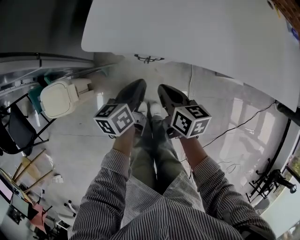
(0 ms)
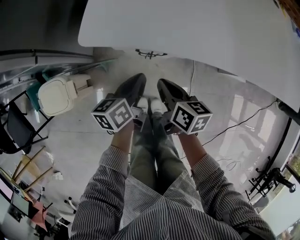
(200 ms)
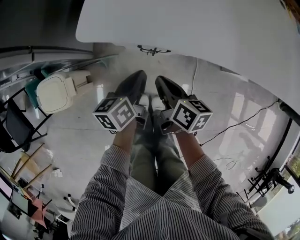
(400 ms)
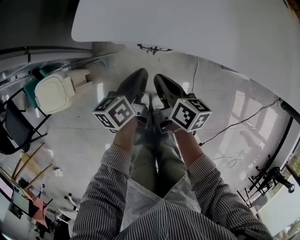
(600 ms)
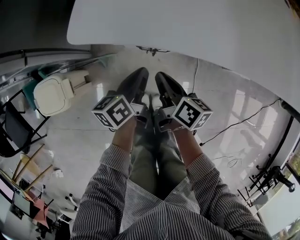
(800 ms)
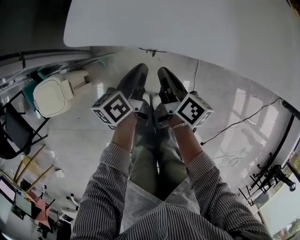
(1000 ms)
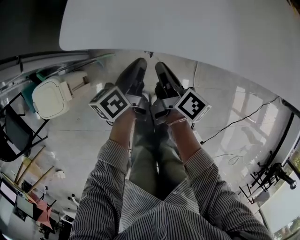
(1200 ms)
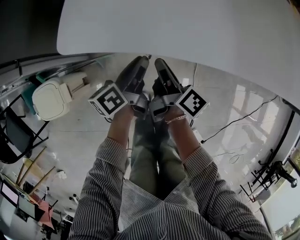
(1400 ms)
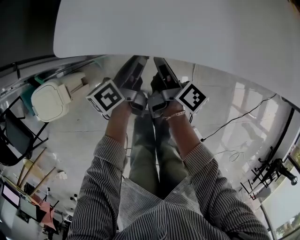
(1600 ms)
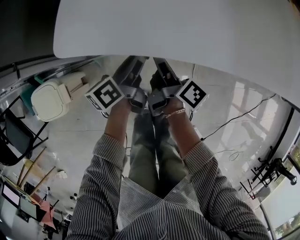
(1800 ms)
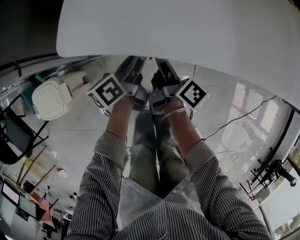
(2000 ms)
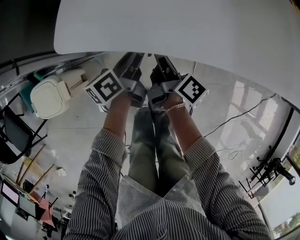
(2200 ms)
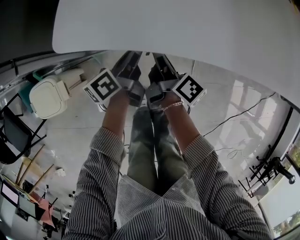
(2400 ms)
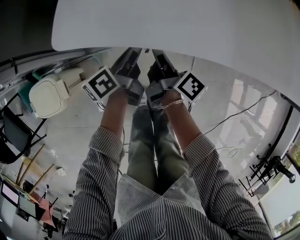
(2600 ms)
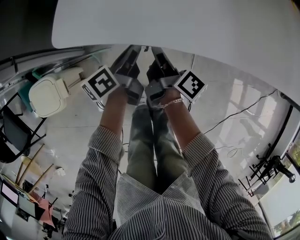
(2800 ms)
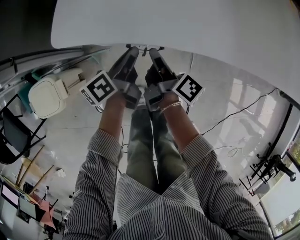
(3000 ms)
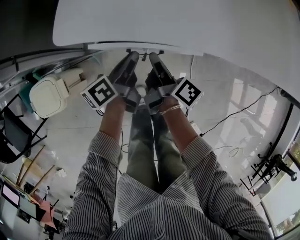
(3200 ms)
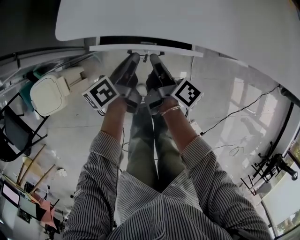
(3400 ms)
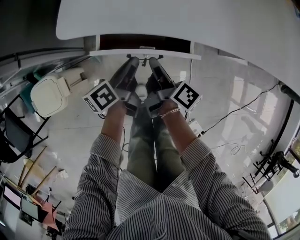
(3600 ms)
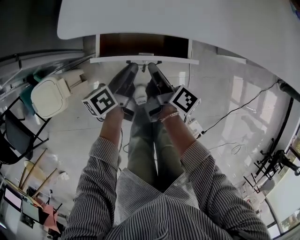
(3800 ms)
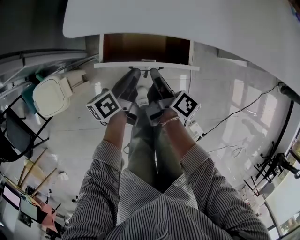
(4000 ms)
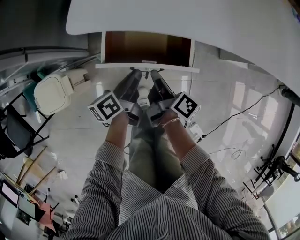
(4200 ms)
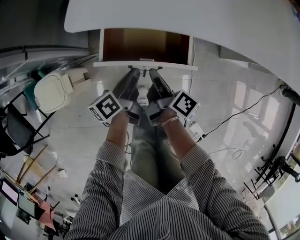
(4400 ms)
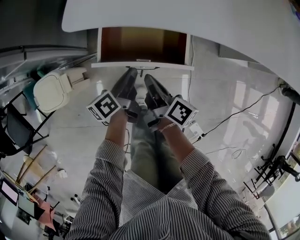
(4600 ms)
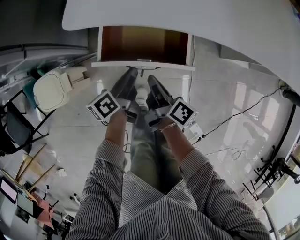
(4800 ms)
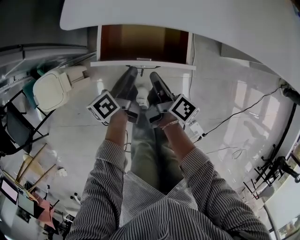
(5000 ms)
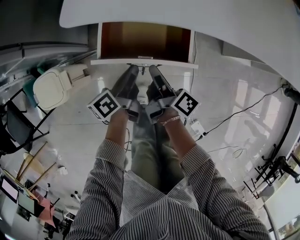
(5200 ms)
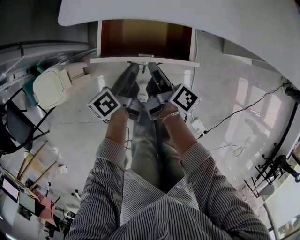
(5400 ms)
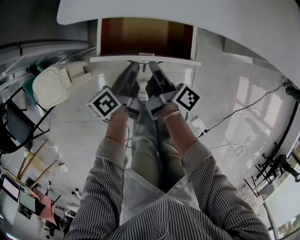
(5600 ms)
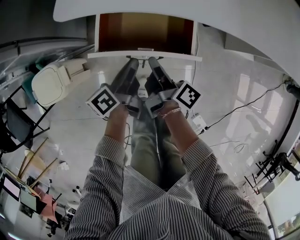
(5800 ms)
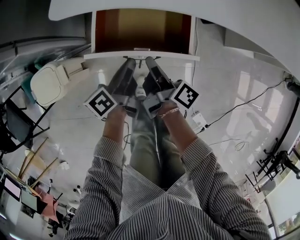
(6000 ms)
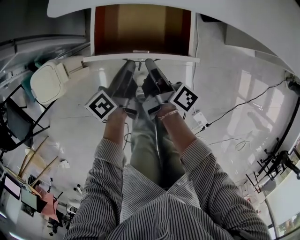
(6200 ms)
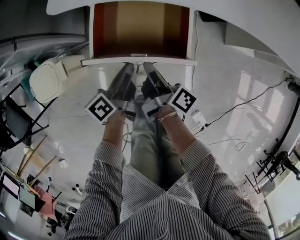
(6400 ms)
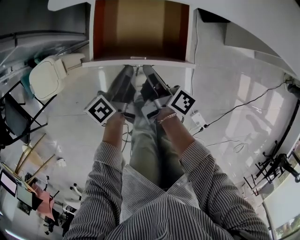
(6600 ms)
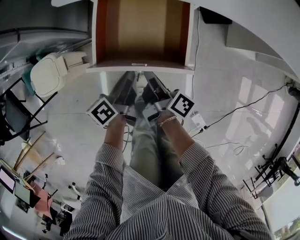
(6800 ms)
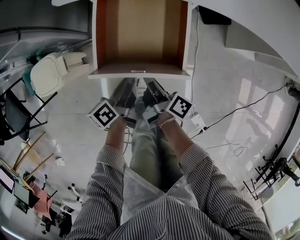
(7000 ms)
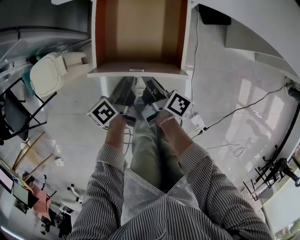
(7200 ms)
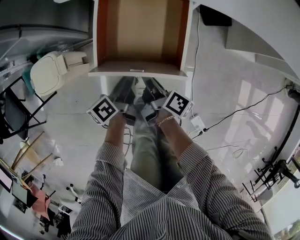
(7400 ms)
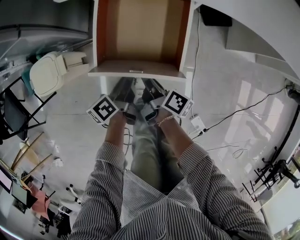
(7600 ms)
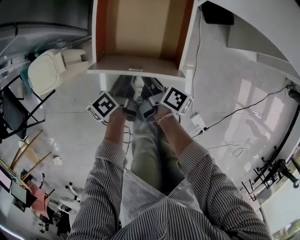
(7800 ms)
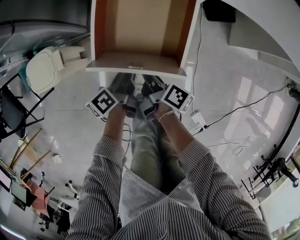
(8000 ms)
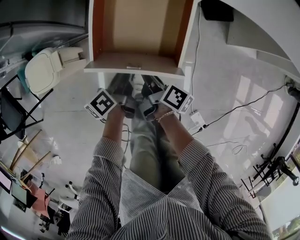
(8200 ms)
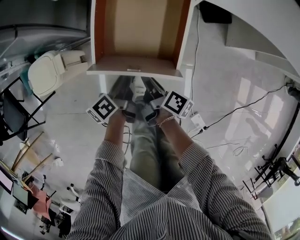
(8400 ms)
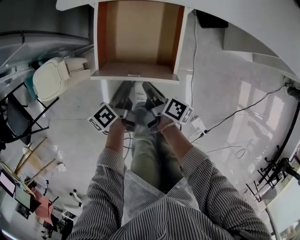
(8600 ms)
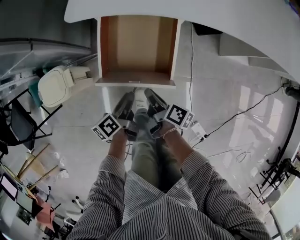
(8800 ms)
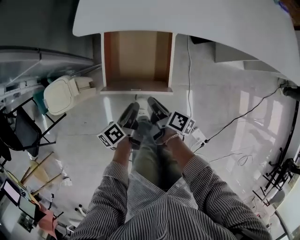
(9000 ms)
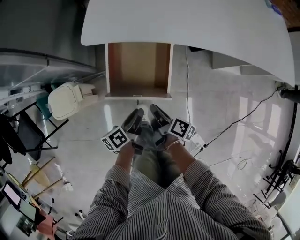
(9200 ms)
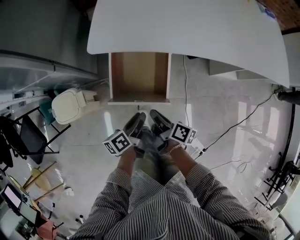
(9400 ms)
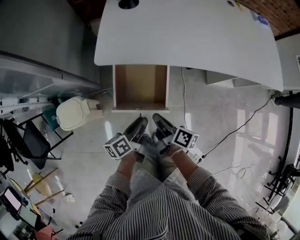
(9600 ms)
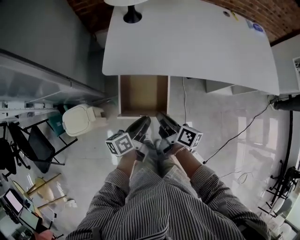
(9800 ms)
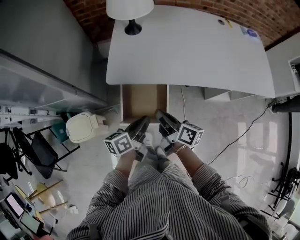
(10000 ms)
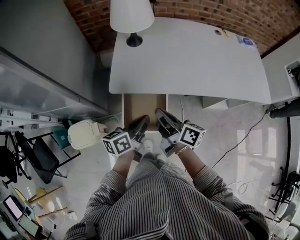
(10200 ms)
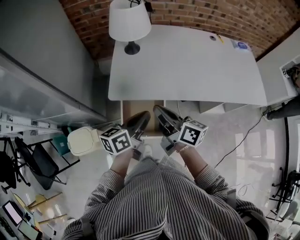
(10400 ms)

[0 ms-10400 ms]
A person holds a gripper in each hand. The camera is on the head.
0 ms to 1400 ms: The two grippers go approximately 10 cm forward and downward. The right gripper rotates roughly 40 degrees. The left gripper opens up.
1400 ms to 3000 ms: There are only small adjustments of the grippers.
3000 ms to 4400 ms: The two grippers go approximately 10 cm backward.
4400 ms to 6000 ms: There are only small adjustments of the grippers.
6000 ms to 7400 ms: Both grippers move backward, roughly 10 cm.
7400 ms to 9000 ms: The two grippers go about 5 cm upward. The left gripper opens up.
9000 ms to 10400 ms: The grippers both shift upward by approximately 40 cm. The right gripper turns by approximately 40 degrees; the left gripper swivels approximately 40 degrees, and closes.

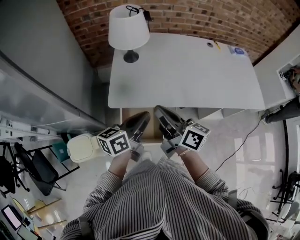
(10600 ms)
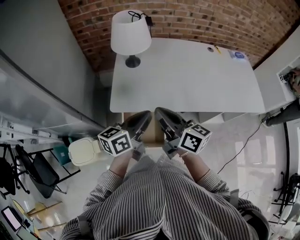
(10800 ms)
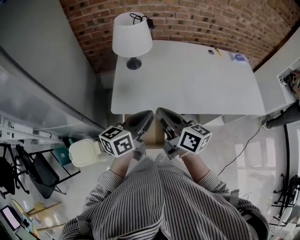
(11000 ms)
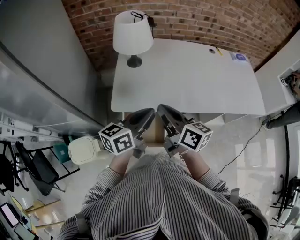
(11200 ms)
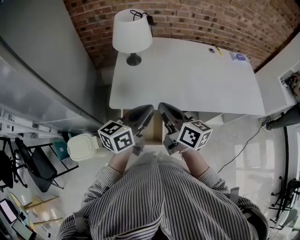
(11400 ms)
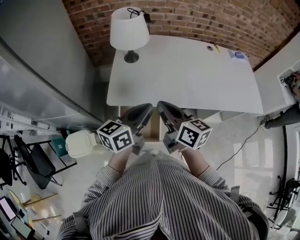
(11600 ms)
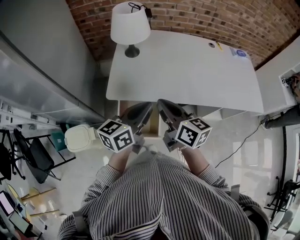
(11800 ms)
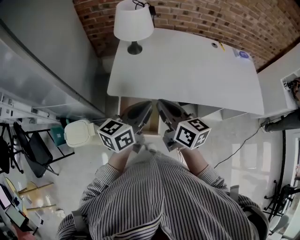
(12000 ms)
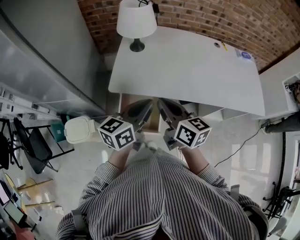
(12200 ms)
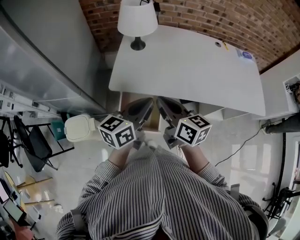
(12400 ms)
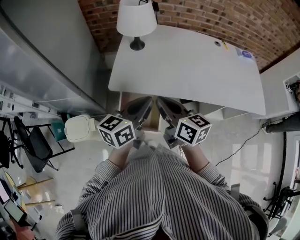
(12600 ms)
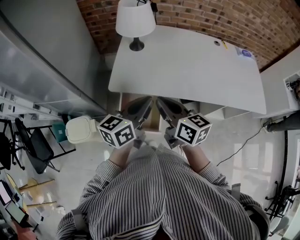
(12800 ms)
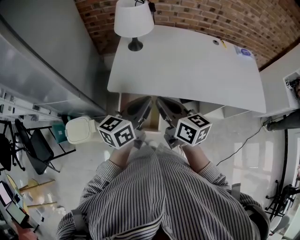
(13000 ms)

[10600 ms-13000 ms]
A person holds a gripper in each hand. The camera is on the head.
10600 ms to 11800 ms: The left gripper shifts approximately 5 cm upward.
11800 ms to 13000 ms: The grippers make only small movements.

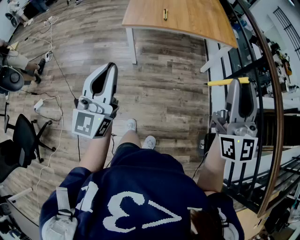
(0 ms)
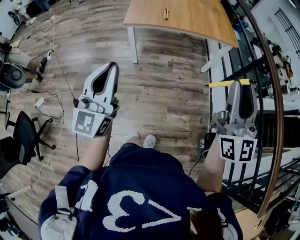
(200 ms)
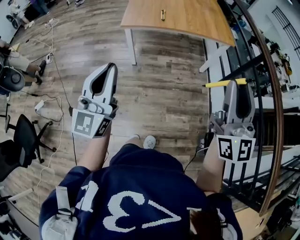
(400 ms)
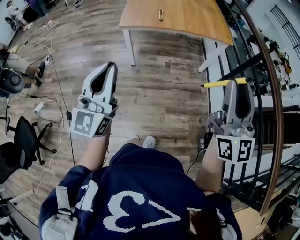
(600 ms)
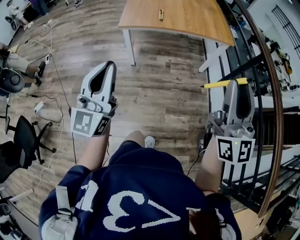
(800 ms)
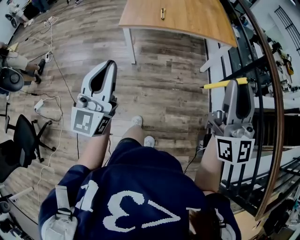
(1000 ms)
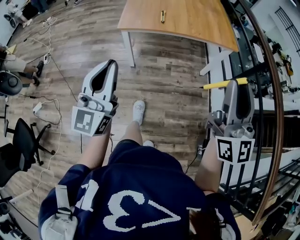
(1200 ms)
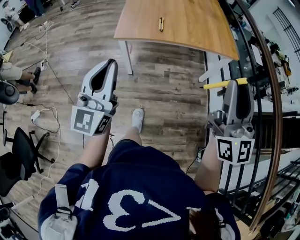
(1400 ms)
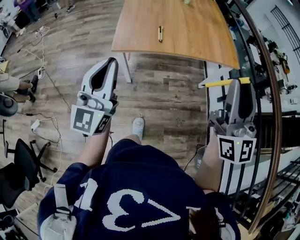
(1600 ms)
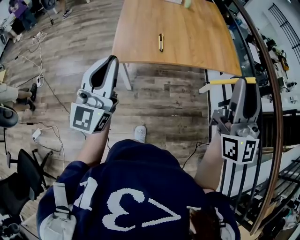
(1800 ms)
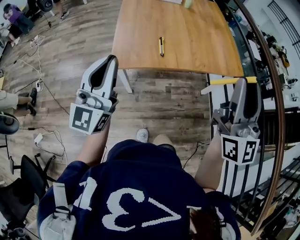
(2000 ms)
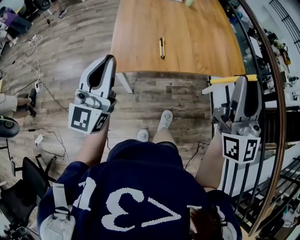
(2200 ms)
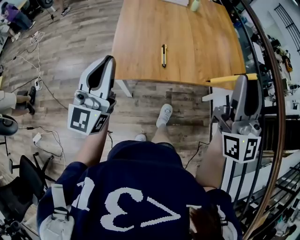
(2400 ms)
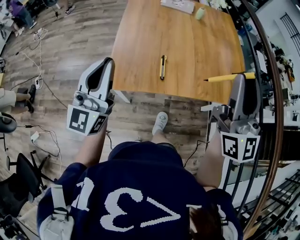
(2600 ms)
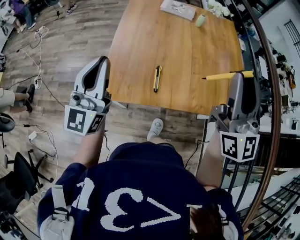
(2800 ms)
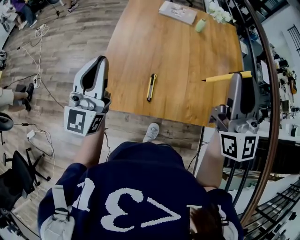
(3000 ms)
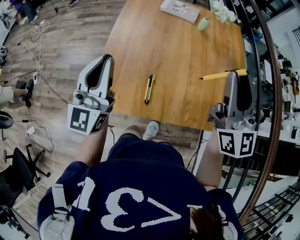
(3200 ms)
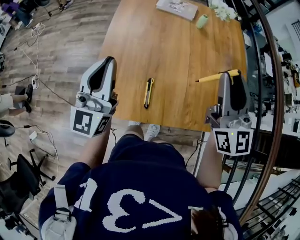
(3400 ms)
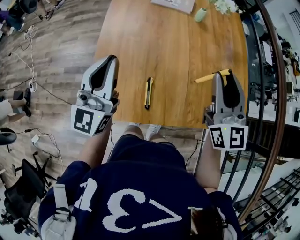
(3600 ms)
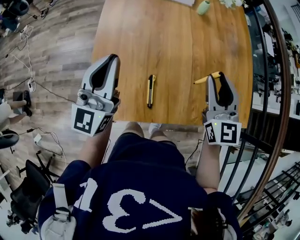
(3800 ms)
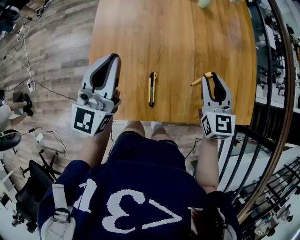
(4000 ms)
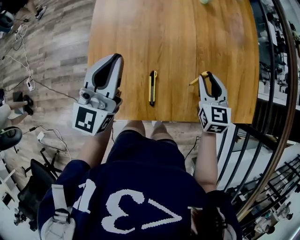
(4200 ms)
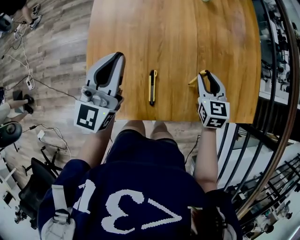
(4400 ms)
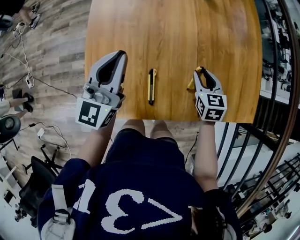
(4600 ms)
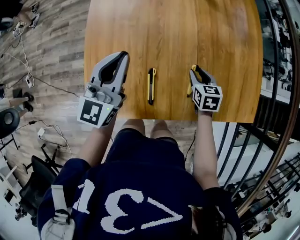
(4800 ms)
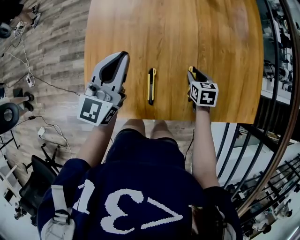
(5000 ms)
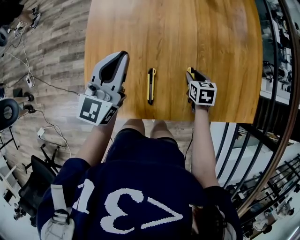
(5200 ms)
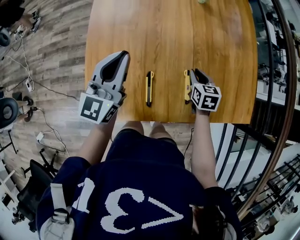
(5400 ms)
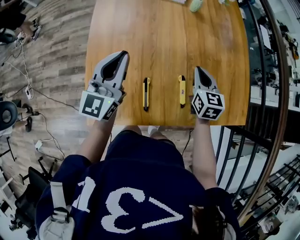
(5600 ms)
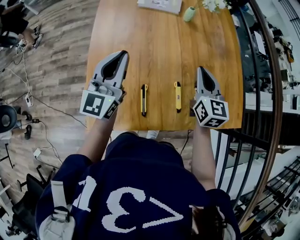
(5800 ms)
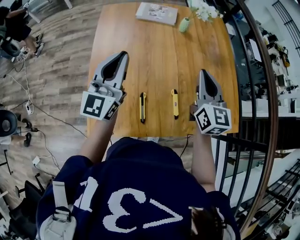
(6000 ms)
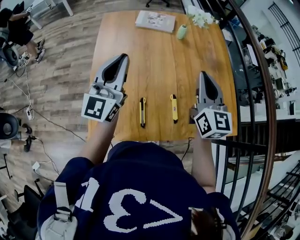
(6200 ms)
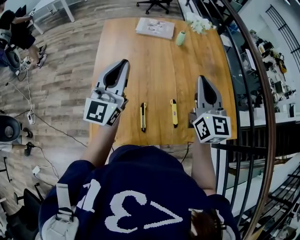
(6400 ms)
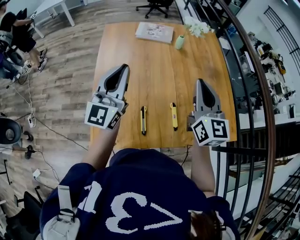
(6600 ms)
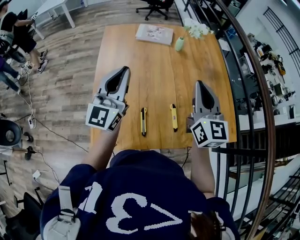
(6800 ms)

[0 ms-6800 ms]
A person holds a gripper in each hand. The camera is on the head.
0 ms to 1400 ms: Both grippers move forward, some 15 cm.
1400 ms to 2800 ms: The pair of grippers is taken forward, about 50 cm.
2800 ms to 4000 ms: The left gripper moves forward and downward, about 20 cm, while the right gripper goes some 35 cm downward and forward, and tilts its fingers roughly 40 degrees downward.
4000 ms to 5400 ms: The left gripper heads downward, covering roughly 5 cm; the right gripper shifts some 15 cm downward, and changes its angle by some 30 degrees.
5400 ms to 6800 ms: The right gripper shifts approximately 35 cm upward, and points its fingers some 50 degrees further upward; the left gripper goes approximately 15 cm upward.

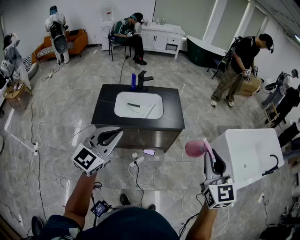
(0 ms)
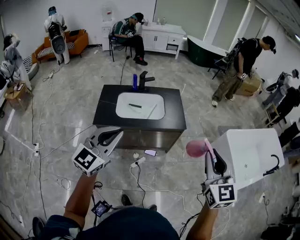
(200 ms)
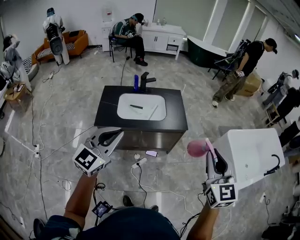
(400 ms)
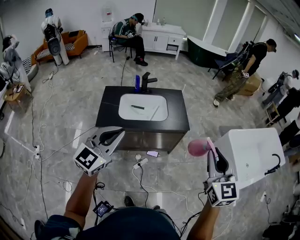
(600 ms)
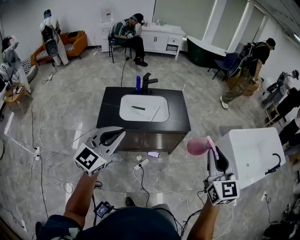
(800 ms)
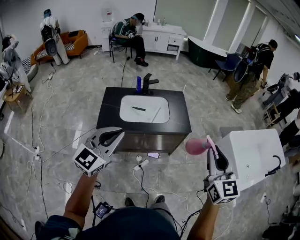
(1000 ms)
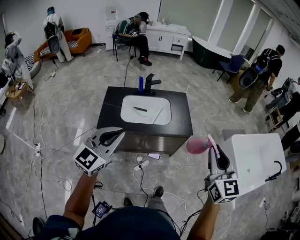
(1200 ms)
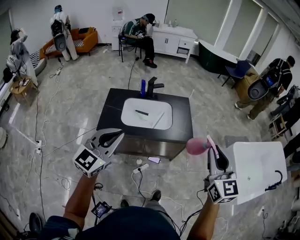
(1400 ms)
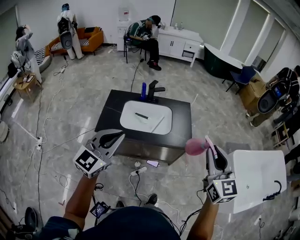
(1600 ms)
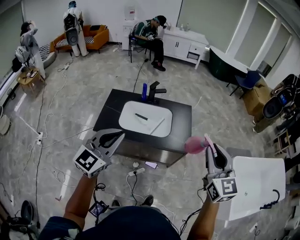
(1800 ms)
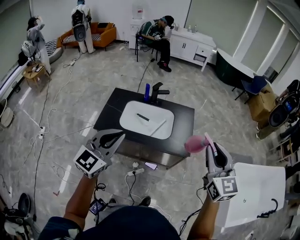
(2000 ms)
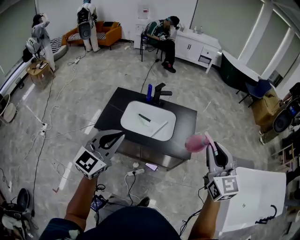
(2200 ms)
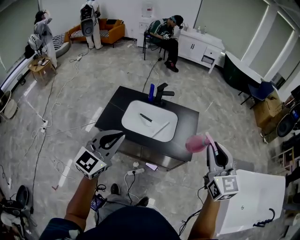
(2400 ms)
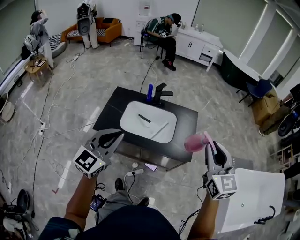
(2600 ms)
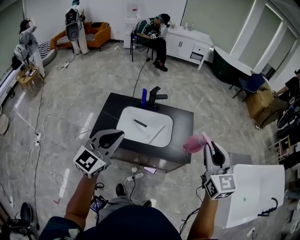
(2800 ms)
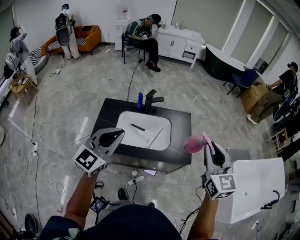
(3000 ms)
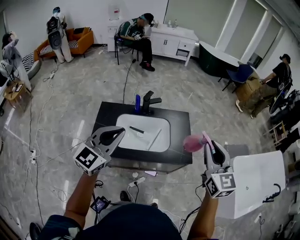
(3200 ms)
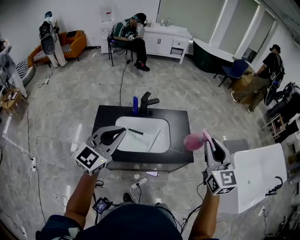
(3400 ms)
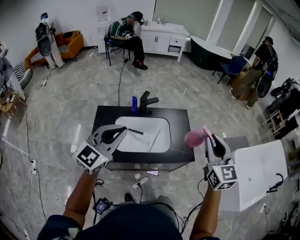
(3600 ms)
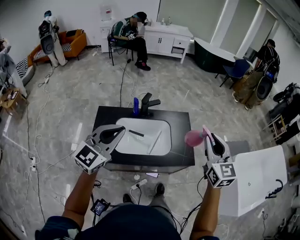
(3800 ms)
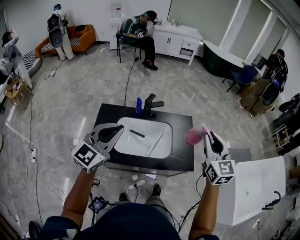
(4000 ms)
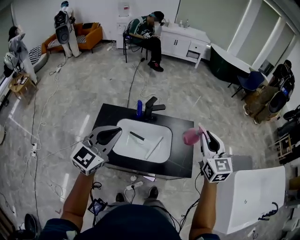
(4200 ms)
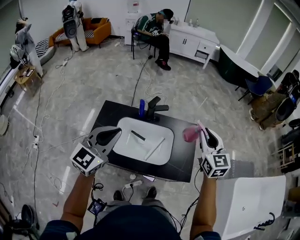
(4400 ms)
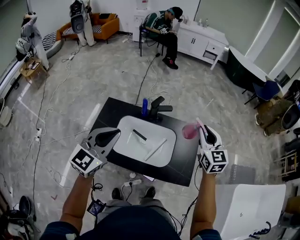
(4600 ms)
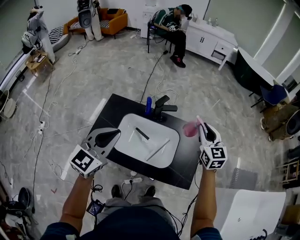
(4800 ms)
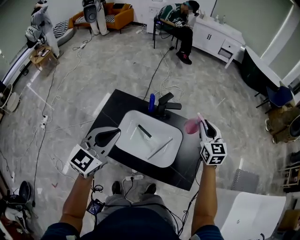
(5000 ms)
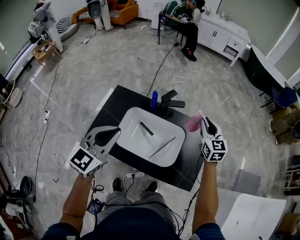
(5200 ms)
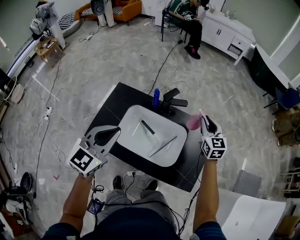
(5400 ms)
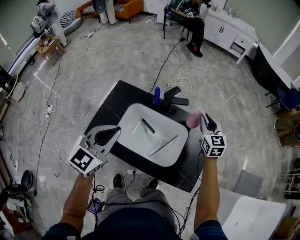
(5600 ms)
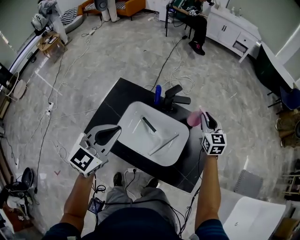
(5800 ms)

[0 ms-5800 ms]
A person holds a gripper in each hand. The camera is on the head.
0 ms to 1400 ms: The left gripper heads forward and to the left, covering some 10 cm; the right gripper moves forward, roughly 10 cm.
1400 ms to 2800 ms: Both grippers move forward, roughly 20 cm.
2800 ms to 4400 ms: The grippers both shift forward by some 20 cm.
4400 ms to 5800 ms: The right gripper moves downward and forward, approximately 30 cm. The left gripper heads downward and forward, covering approximately 15 cm.
